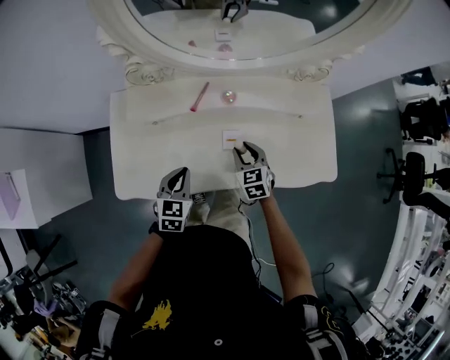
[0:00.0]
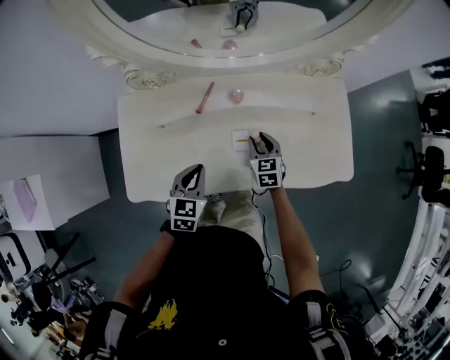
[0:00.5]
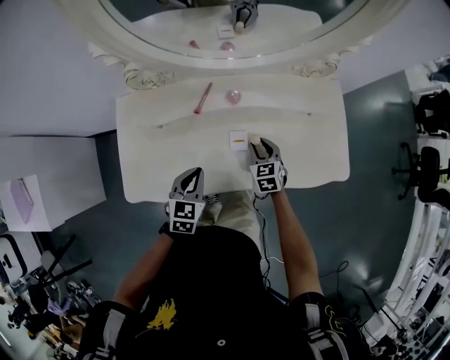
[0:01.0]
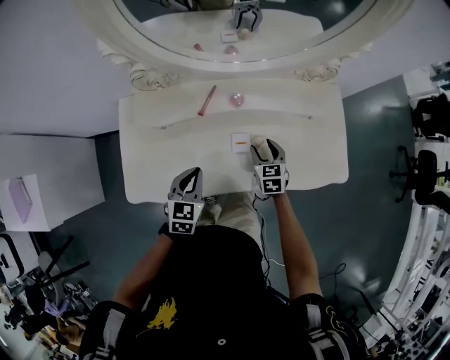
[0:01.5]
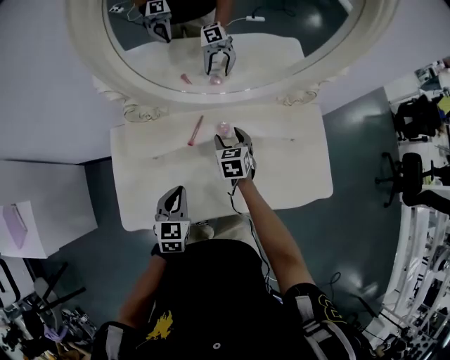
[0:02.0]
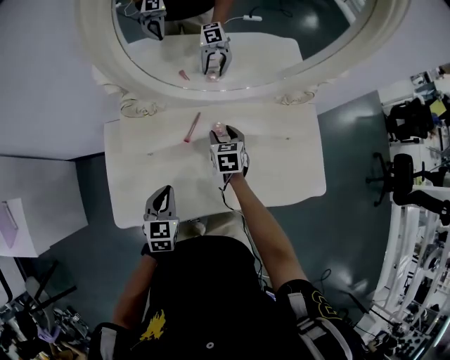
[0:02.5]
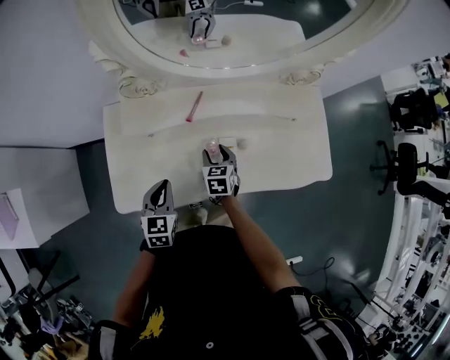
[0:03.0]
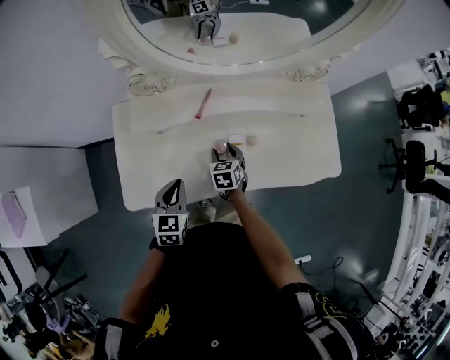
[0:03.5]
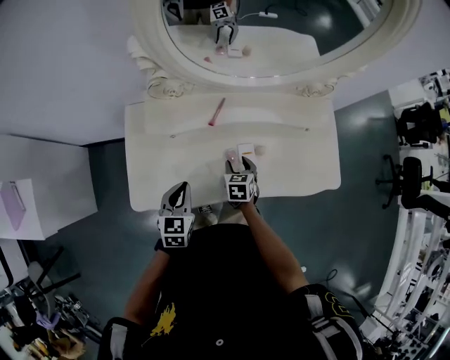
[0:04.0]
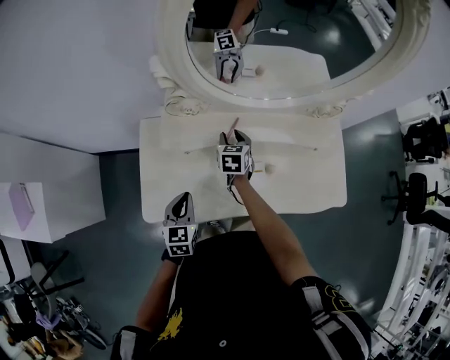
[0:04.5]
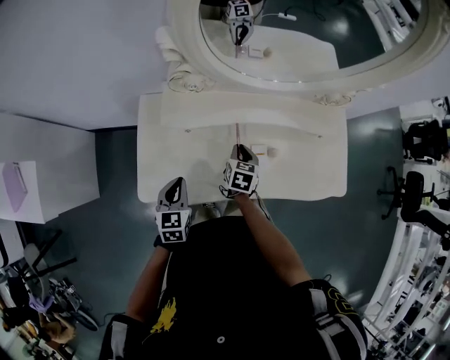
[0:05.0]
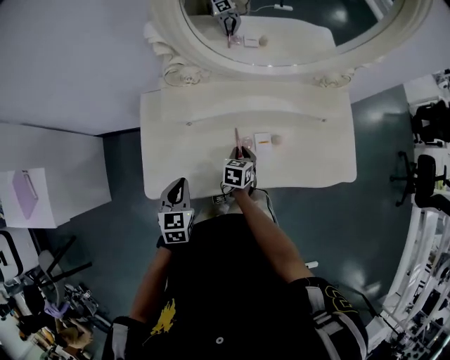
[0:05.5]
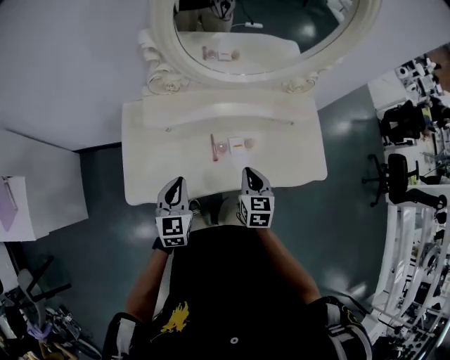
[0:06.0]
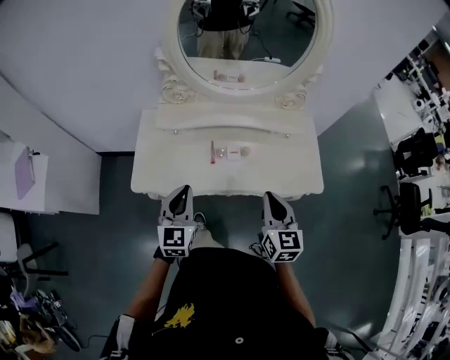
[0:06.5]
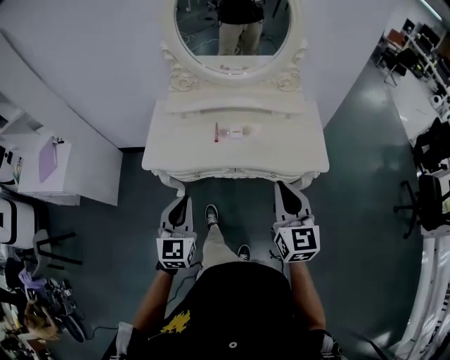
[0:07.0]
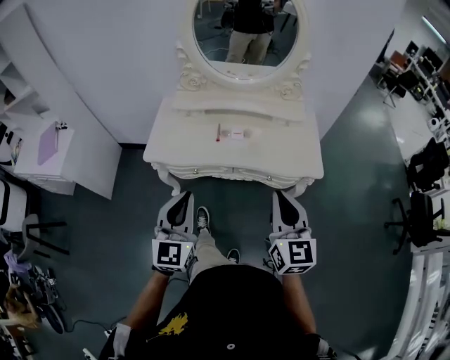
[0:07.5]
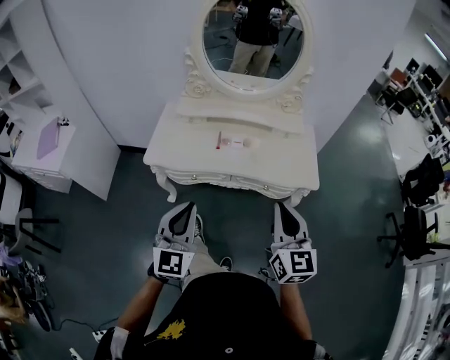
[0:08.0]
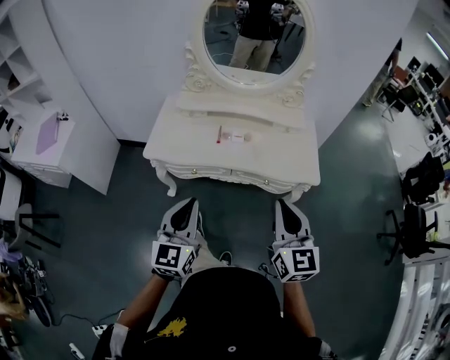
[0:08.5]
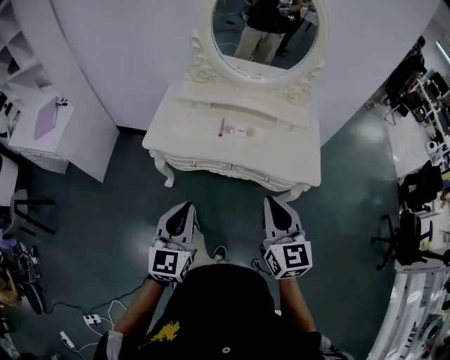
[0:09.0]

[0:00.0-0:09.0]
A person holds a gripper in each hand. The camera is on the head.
0:00.0 to 0:02.0: The left gripper shifts by some 5 cm; the right gripper travels forward by roughly 15 cm, and opens.
0:02.0 to 0:04.5: Both grippers travel together to the left, roughly 10 cm. The right gripper travels backward and back again, about 15 cm each way.
0:04.5 to 0:07.0: The right gripper goes some 70 cm backward, to the right and upward, tilts its fingers some 40 degrees upward, and closes. The left gripper shifts about 40 cm backward, to the right and upward, and turns by some 20 degrees.
0:07.0 to 0:09.0: Both grippers travel together backward, approximately 10 cm.

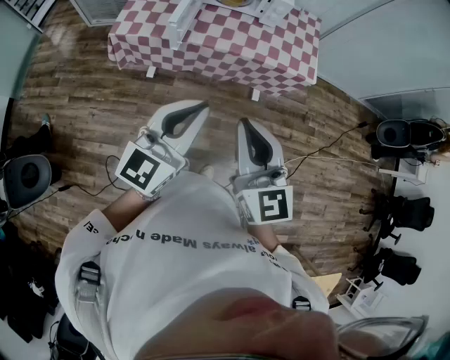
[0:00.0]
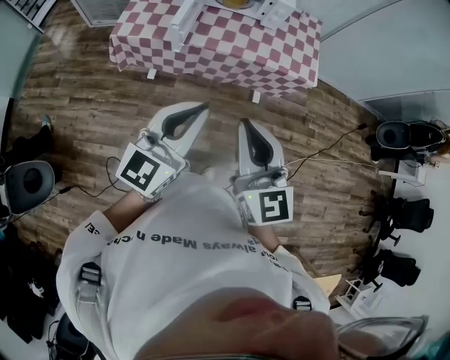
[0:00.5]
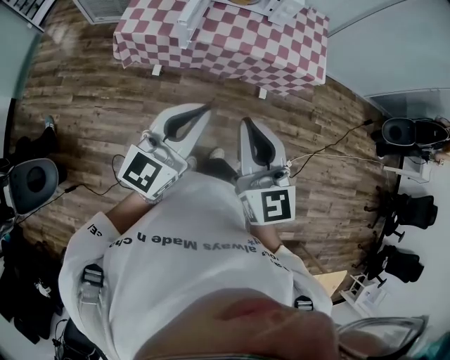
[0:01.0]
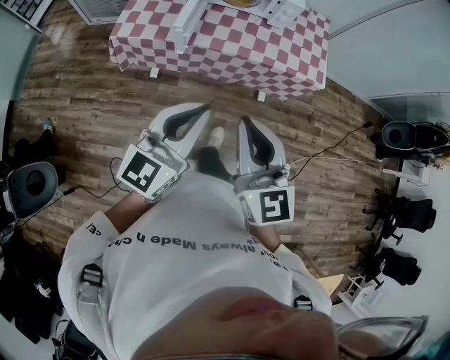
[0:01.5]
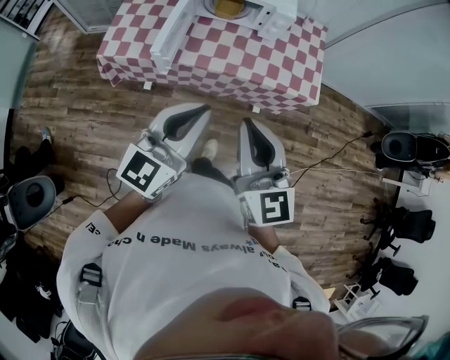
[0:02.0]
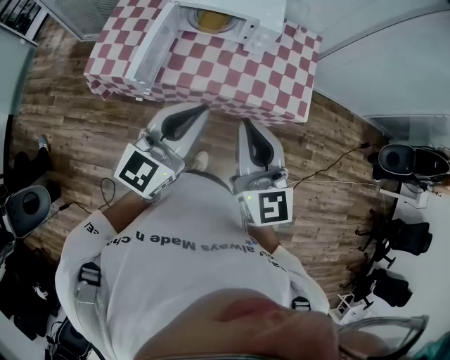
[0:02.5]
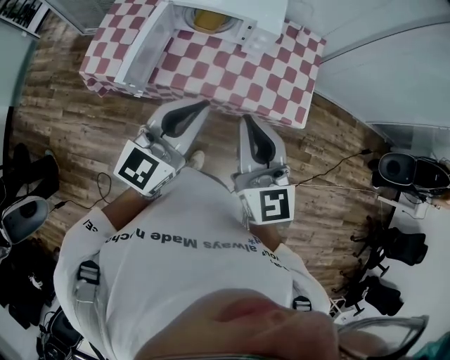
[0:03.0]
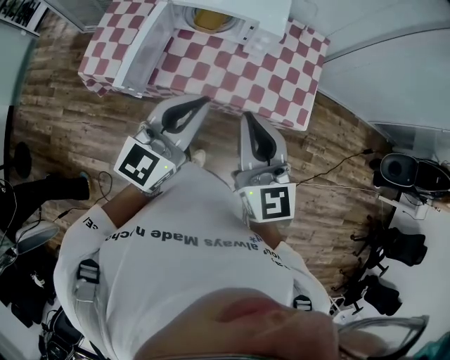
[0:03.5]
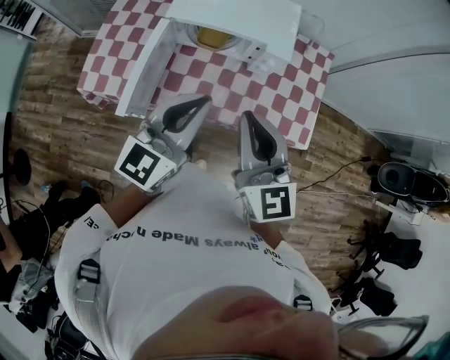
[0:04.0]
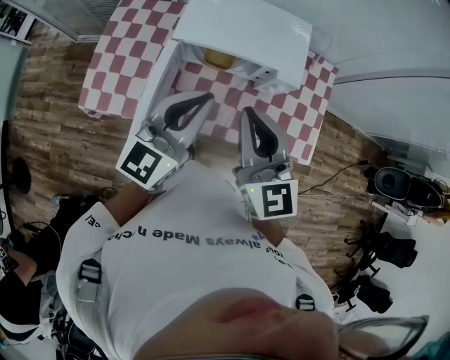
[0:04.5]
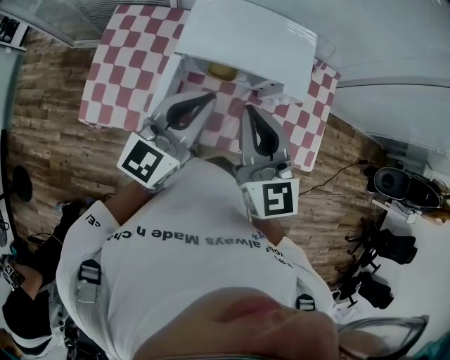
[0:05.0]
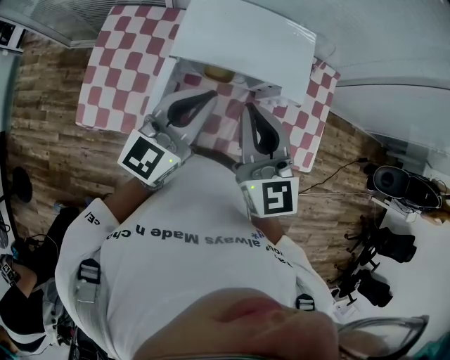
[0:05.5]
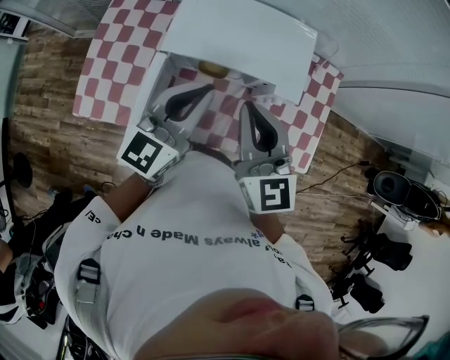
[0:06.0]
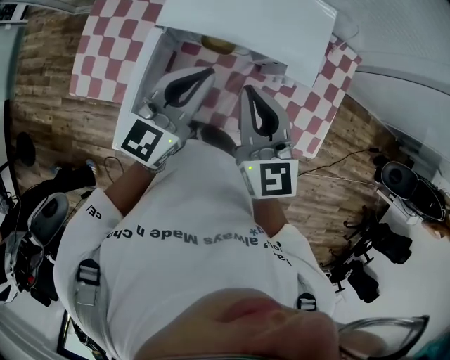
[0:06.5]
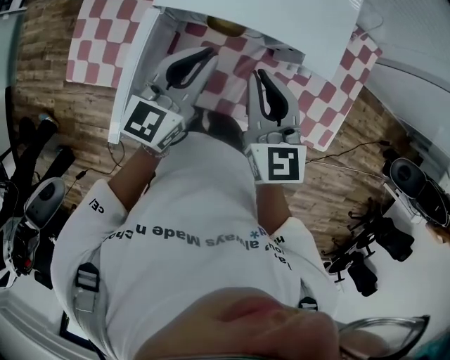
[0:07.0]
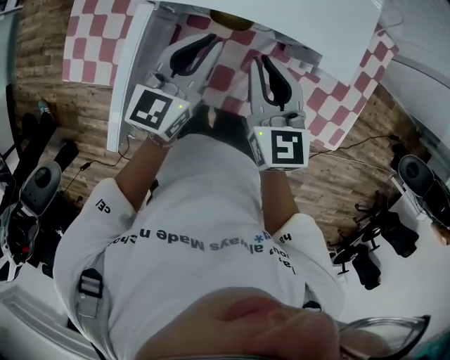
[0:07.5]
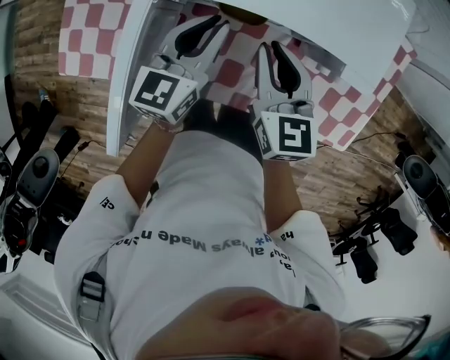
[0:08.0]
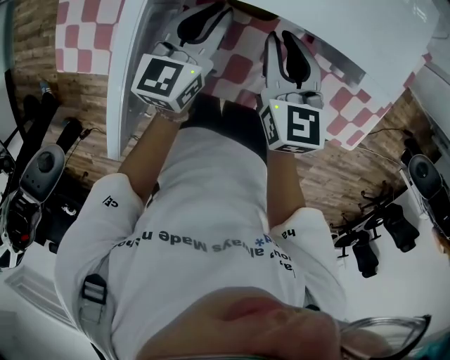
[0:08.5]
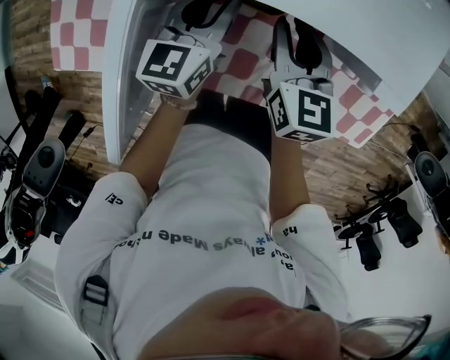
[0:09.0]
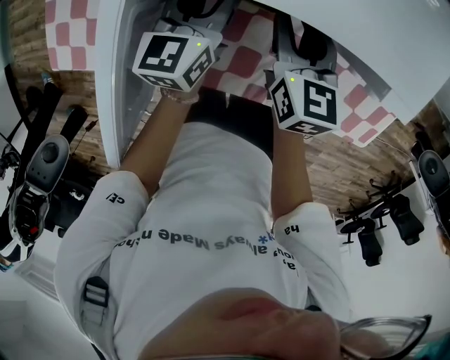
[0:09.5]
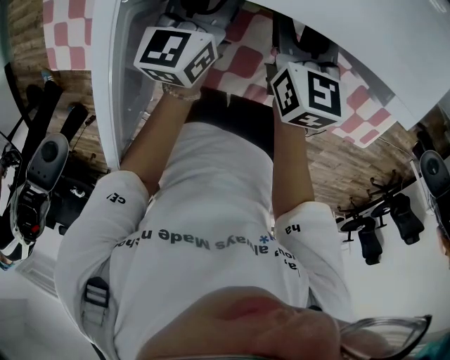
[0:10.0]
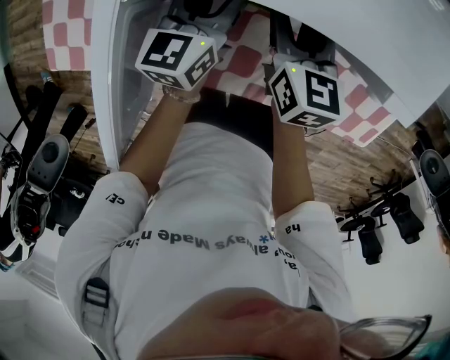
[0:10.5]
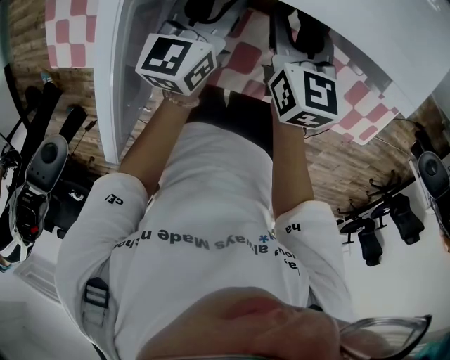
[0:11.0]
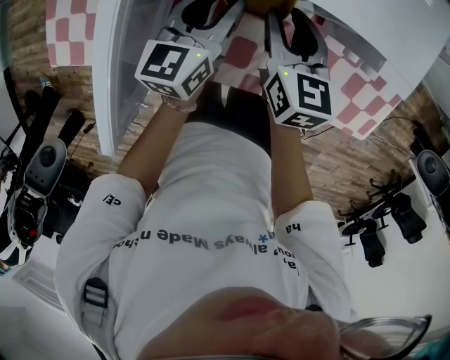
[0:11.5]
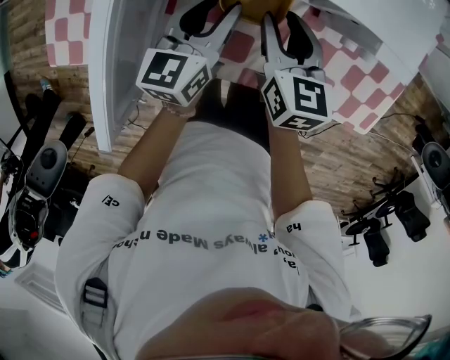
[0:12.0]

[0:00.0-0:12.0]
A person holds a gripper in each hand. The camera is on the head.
0:00.0 to 0:02.0: The two grippers go roughly 20 cm forward.
0:02.0 to 0:04.0: The two grippers go approximately 30 cm forward.
0:04.0 to 0:06.0: The grippers both shift forward by roughly 20 cm.
0:06.0 to 0:08.0: Both grippers travel together downward, roughly 25 cm. The left gripper rotates about 20 degrees. Meanwhile the right gripper turns by approximately 20 degrees.
0:08.0 to 0:10.0: Both grippers move downward and forward, approximately 15 cm. The right gripper opens up. Meanwhile the left gripper opens up.
0:10.0 to 0:12.0: Both grippers move backward, some 10 cm.

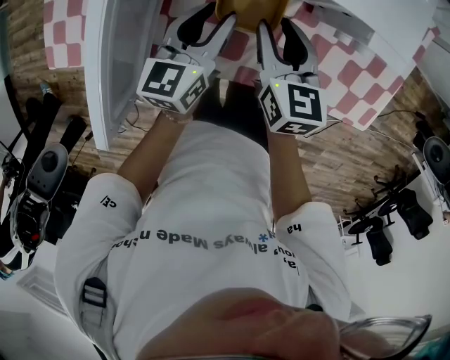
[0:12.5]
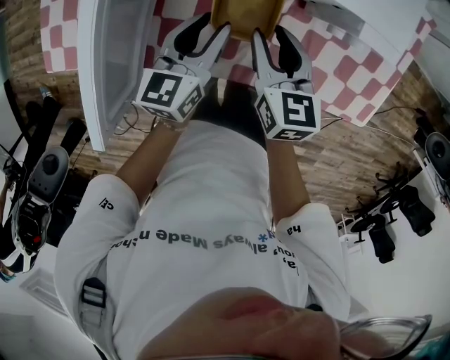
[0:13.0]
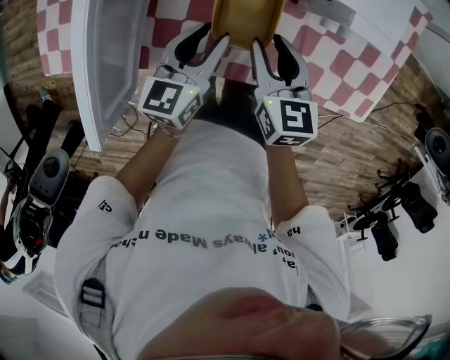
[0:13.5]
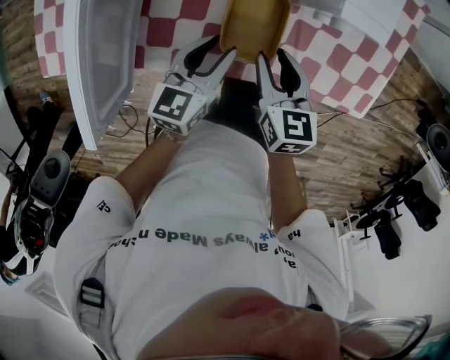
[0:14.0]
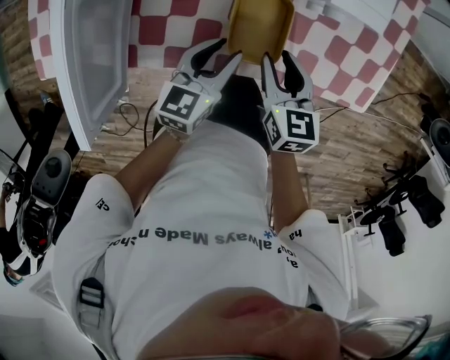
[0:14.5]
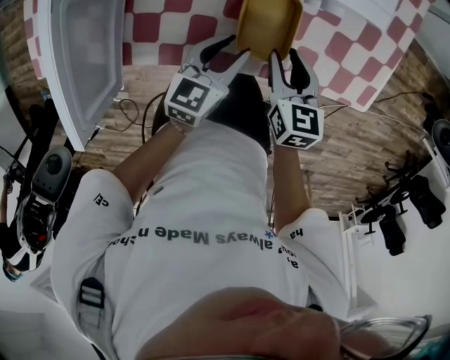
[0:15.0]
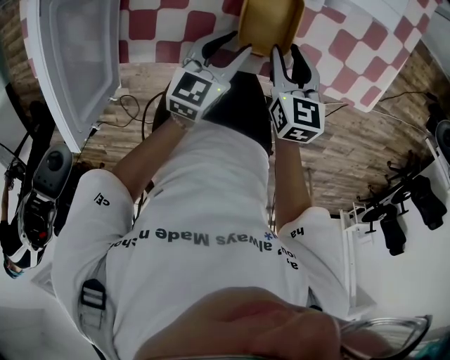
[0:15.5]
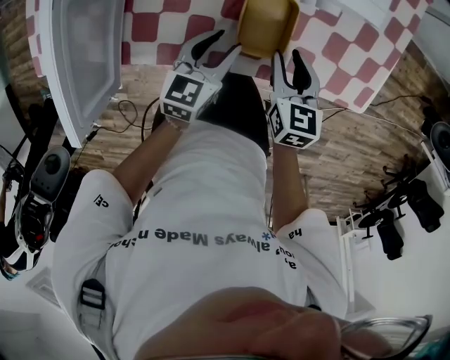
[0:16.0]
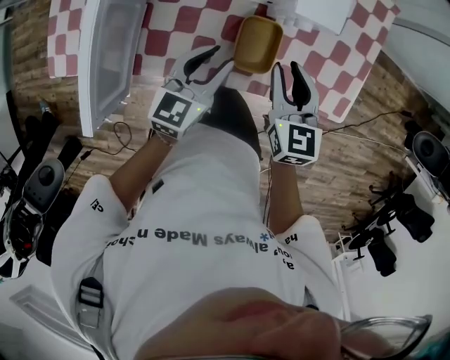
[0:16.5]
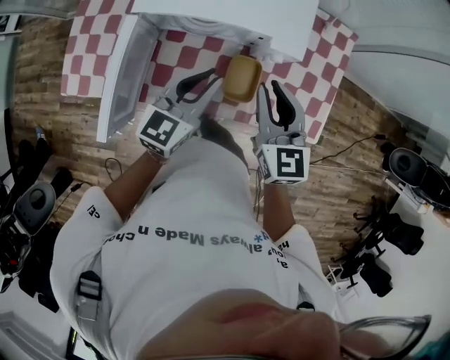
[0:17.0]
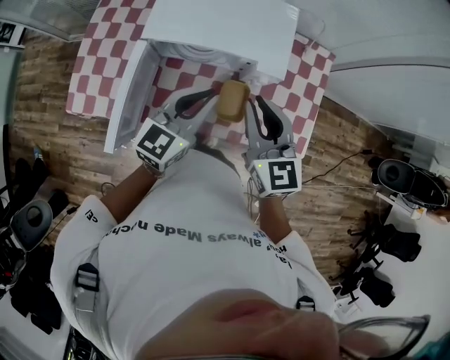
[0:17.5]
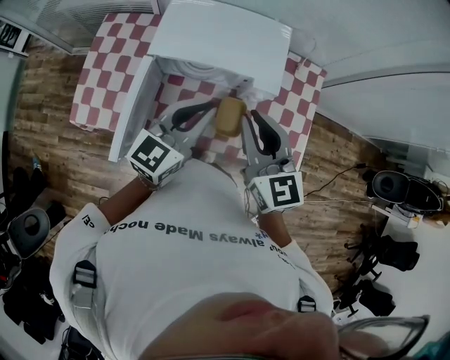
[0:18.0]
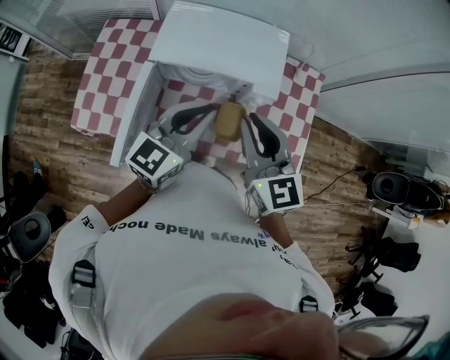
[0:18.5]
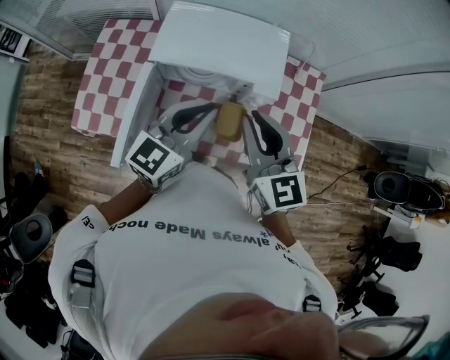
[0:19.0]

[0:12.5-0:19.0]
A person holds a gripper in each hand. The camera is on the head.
0:12.5 to 0:14.5: Both grippers move to the right and backward, approximately 15 cm.
0:14.5 to 0:17.0: Both grippers travel together upward, some 25 cm. The right gripper turns by roughly 30 degrees. Meanwhile the left gripper changes its angle by approximately 20 degrees.
0:17.0 to 0:19.0: The grippers both shift upward by some 15 cm.
